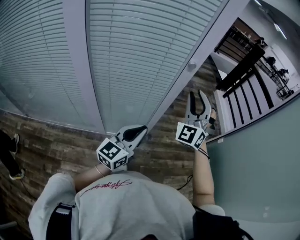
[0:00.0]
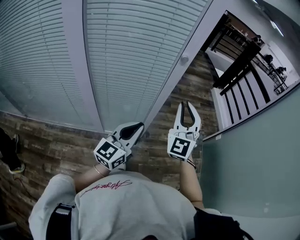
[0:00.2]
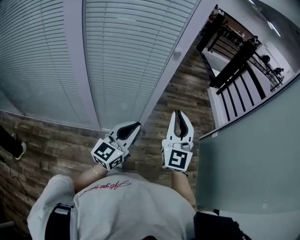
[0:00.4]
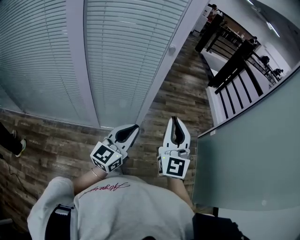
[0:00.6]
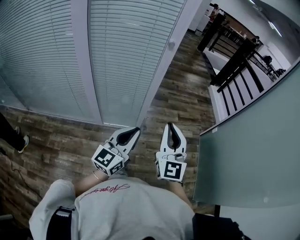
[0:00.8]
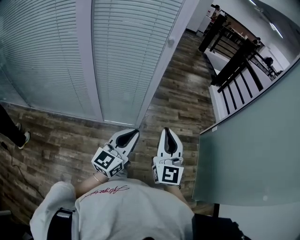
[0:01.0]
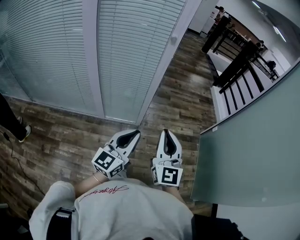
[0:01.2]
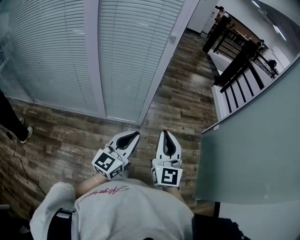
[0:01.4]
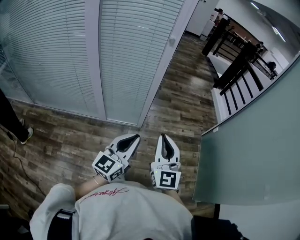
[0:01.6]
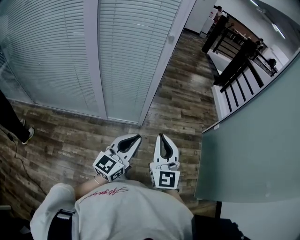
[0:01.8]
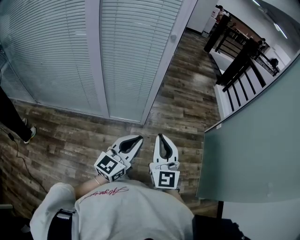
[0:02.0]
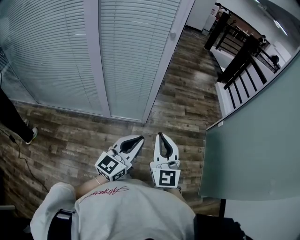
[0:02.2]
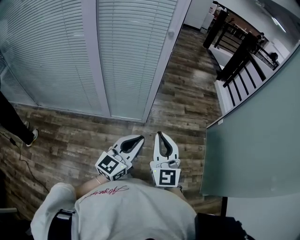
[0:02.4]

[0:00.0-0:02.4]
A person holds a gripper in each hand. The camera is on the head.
0:00.0 to 0:01.2: The right gripper shifts approximately 30 cm backward, rolls clockwise, seen from behind, by some 50 degrees, and closes; the left gripper heads backward and to the right, covering about 20 cm.
0:01.2 to 0:02.4: The right gripper moves roughly 5 cm.

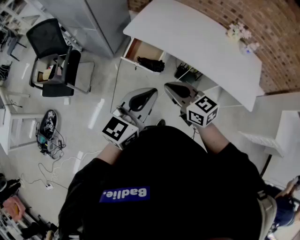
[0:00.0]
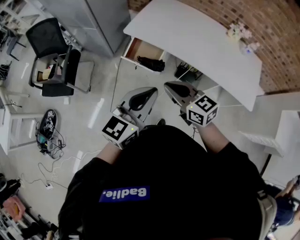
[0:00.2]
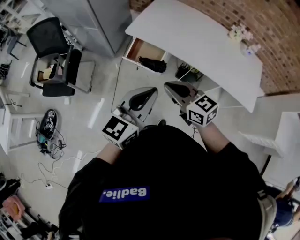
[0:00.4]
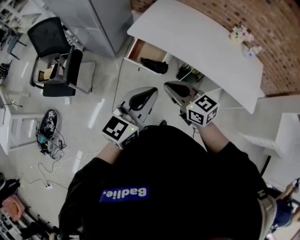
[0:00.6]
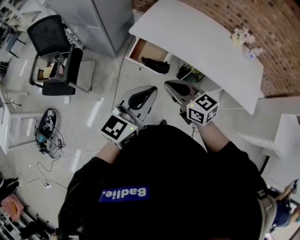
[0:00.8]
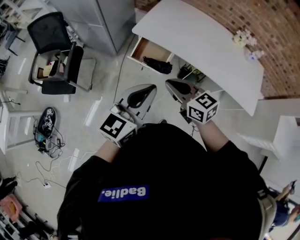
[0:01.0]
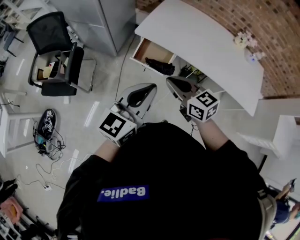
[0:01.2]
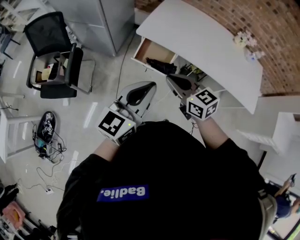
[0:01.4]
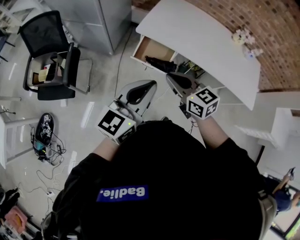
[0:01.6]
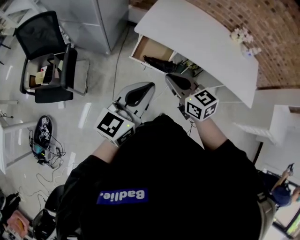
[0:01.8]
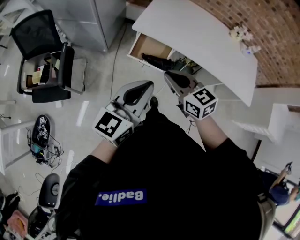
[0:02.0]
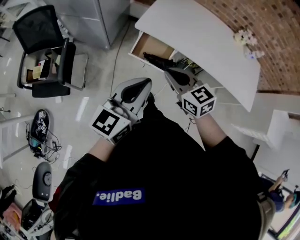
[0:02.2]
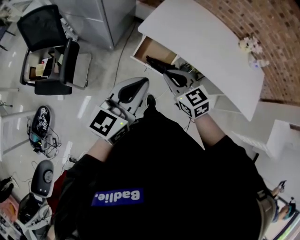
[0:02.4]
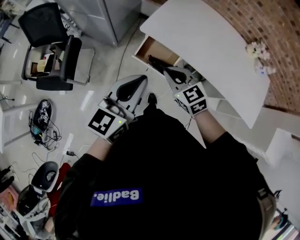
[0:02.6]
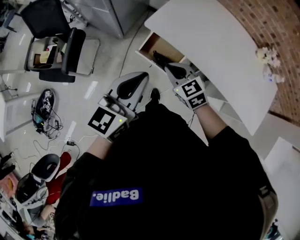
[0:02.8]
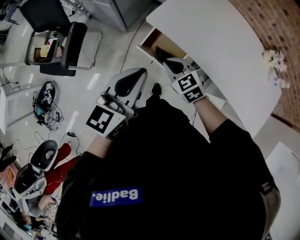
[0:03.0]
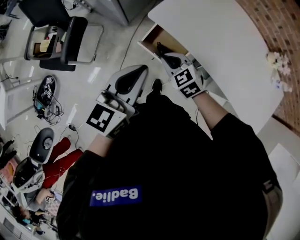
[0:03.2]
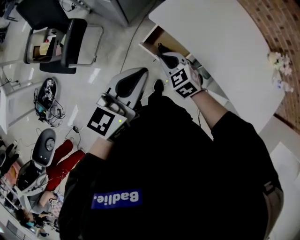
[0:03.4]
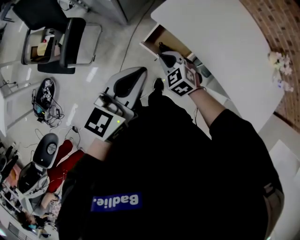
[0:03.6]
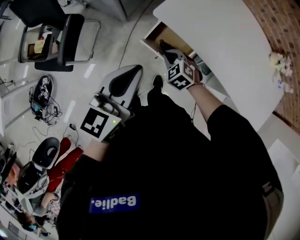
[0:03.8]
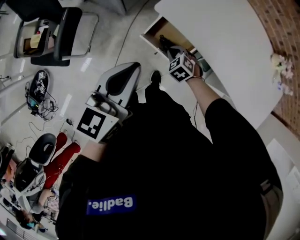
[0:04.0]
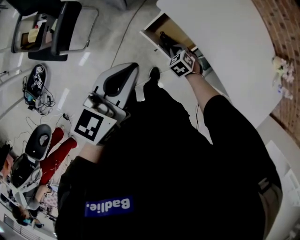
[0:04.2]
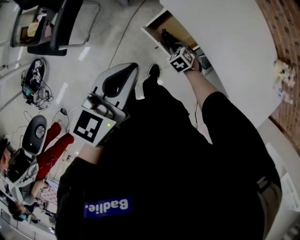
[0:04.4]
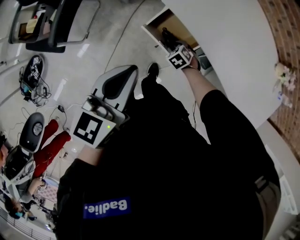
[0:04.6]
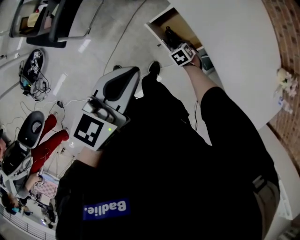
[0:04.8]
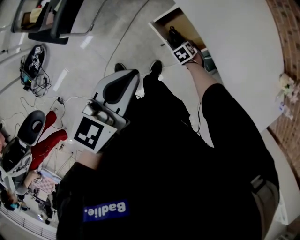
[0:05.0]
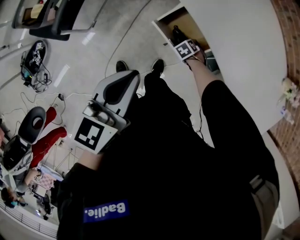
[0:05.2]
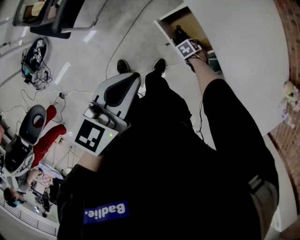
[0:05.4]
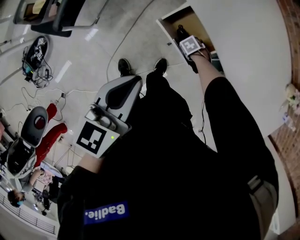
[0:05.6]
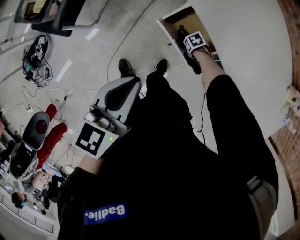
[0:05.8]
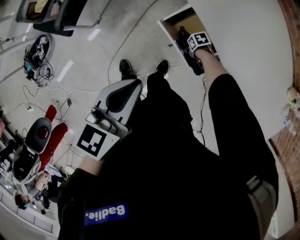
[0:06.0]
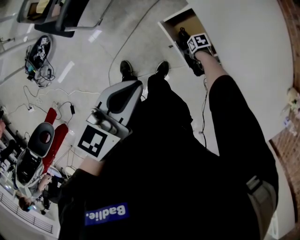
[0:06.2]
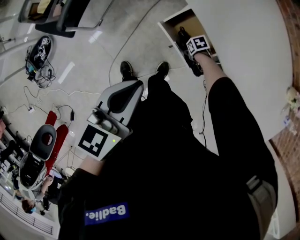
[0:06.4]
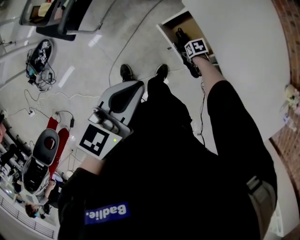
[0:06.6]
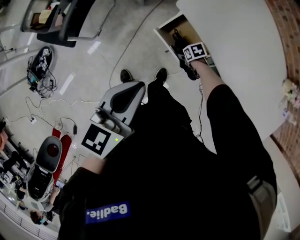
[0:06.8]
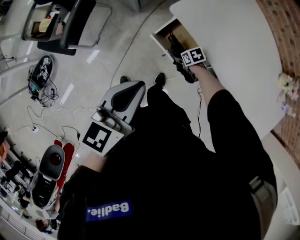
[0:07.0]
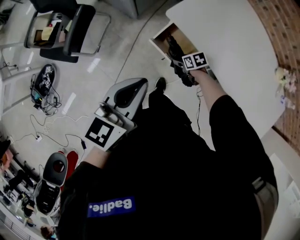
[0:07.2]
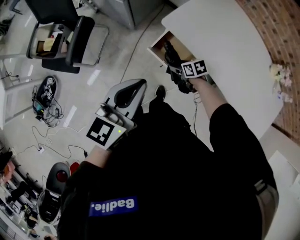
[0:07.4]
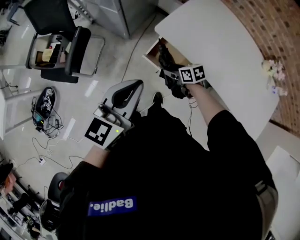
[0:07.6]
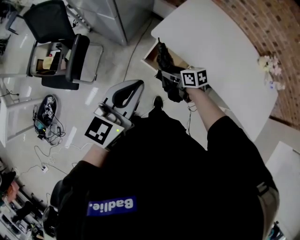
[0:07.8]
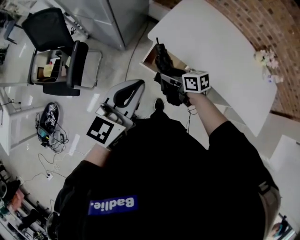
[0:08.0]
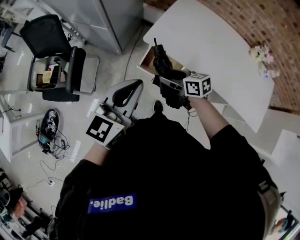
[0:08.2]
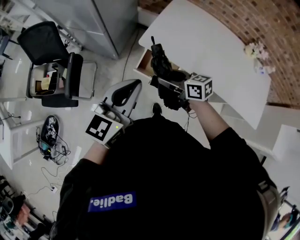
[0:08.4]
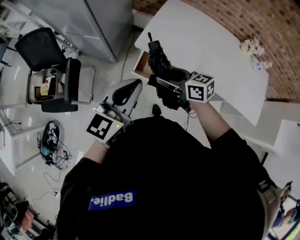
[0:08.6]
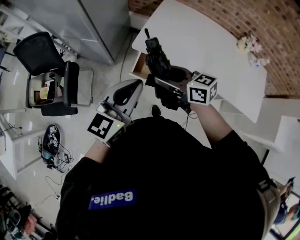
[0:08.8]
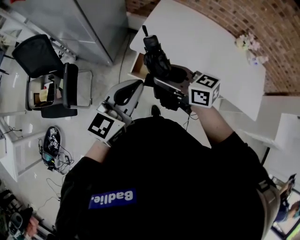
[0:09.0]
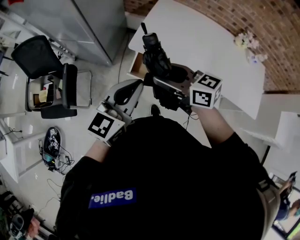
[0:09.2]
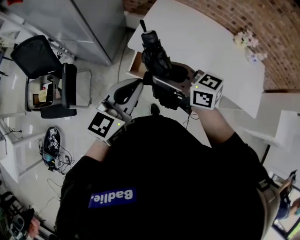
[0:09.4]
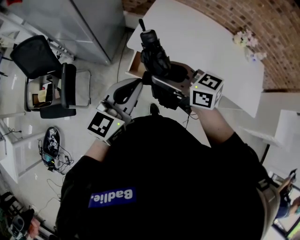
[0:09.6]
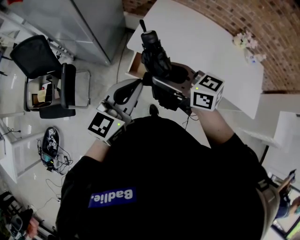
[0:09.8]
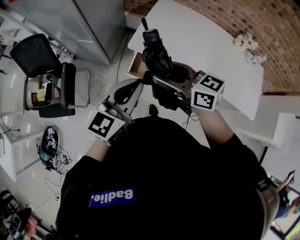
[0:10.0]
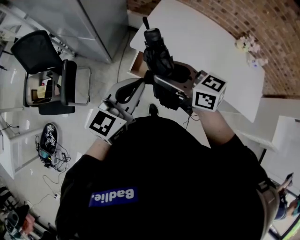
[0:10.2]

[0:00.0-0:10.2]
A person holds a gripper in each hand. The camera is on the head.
0:00.0 to 0:01.4: Both grippers travel together to the left and forward, roughly 15 cm.
0:01.4 to 0:03.0: The left gripper moves forward, roughly 20 cm; the right gripper moves forward and downward, approximately 25 cm, and changes its angle by approximately 30 degrees.
0:03.0 to 0:04.4: The left gripper moves downward and to the left, about 10 cm. Meanwhile the right gripper goes some 25 cm downward, and turns by about 30 degrees.
0:04.4 to 0:05.8: The left gripper shifts by roughly 10 cm; the right gripper is displaced downward by approximately 15 cm, rotates about 40 degrees, and opens its fingers.
0:05.8 to 0:07.2: The right gripper shifts some 15 cm upward, and turns by about 30 degrees, while the left gripper goes about 5 cm upward.
0:07.2 to 0:08.8: The right gripper travels upward by approximately 40 cm, and tilts its fingers approximately 40 degrees upward, while the left gripper travels upward by roughly 10 cm, and turns by some 30 degrees.
0:08.8 to 0:10.2: The right gripper heads upward, covering approximately 5 cm.

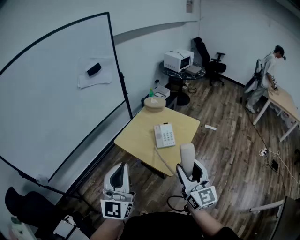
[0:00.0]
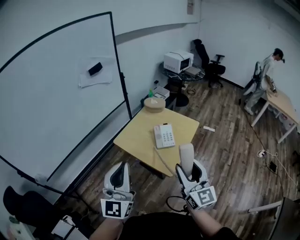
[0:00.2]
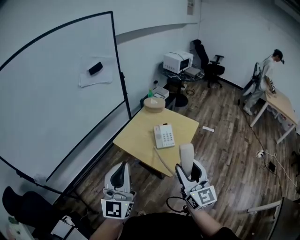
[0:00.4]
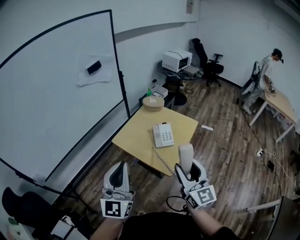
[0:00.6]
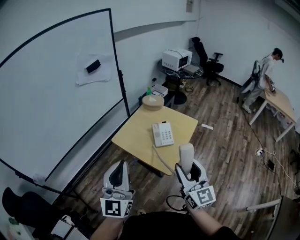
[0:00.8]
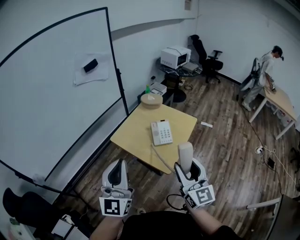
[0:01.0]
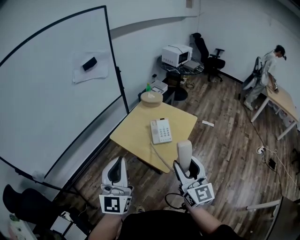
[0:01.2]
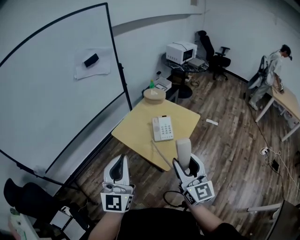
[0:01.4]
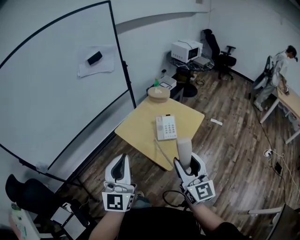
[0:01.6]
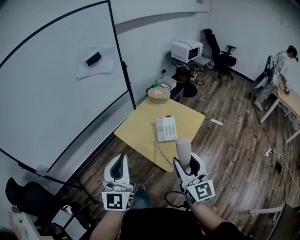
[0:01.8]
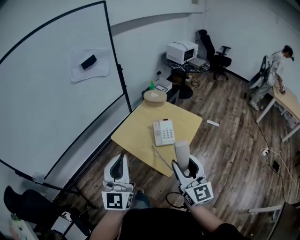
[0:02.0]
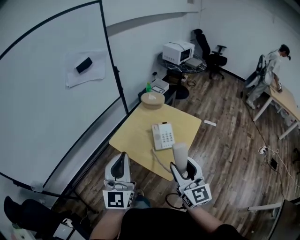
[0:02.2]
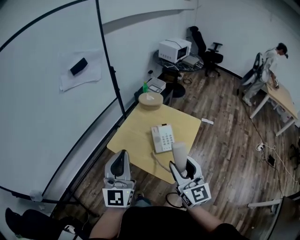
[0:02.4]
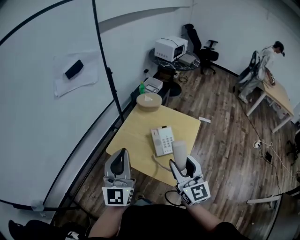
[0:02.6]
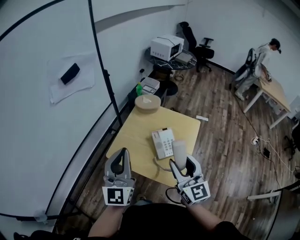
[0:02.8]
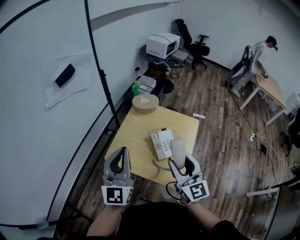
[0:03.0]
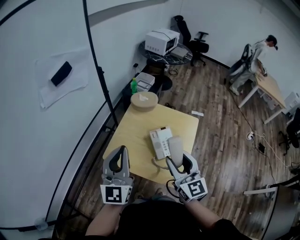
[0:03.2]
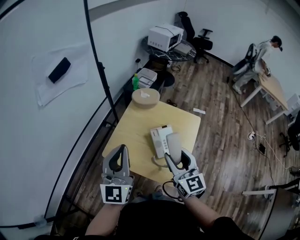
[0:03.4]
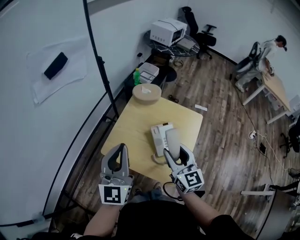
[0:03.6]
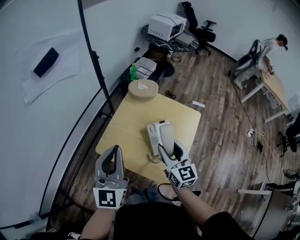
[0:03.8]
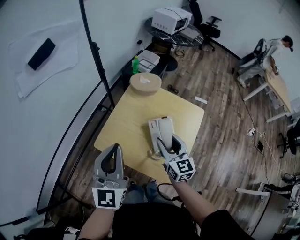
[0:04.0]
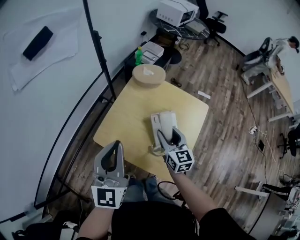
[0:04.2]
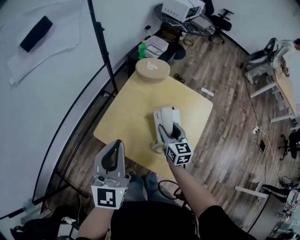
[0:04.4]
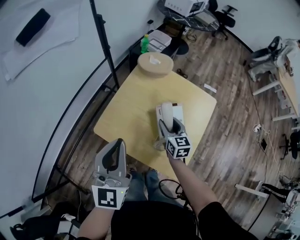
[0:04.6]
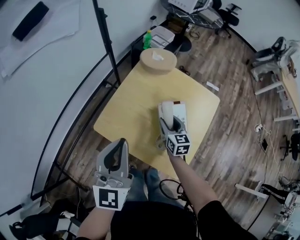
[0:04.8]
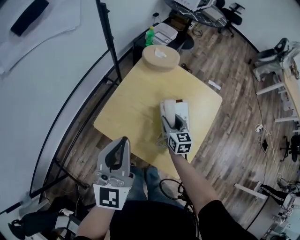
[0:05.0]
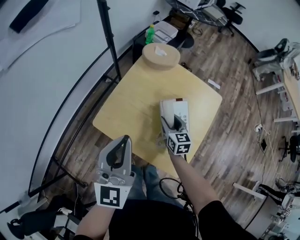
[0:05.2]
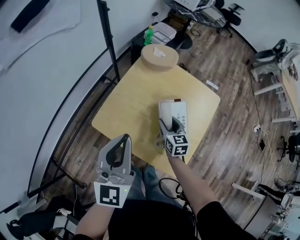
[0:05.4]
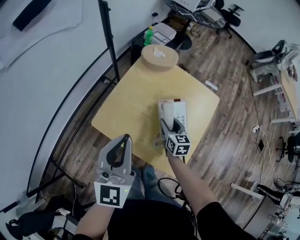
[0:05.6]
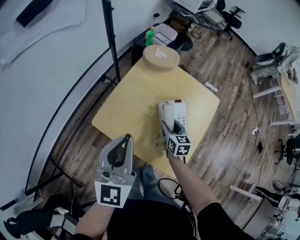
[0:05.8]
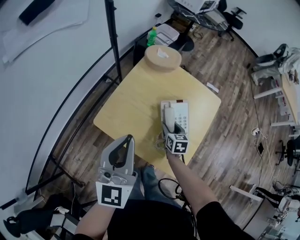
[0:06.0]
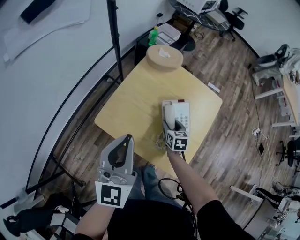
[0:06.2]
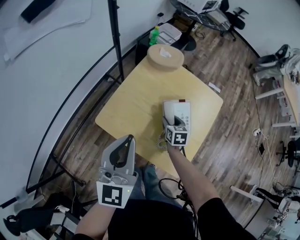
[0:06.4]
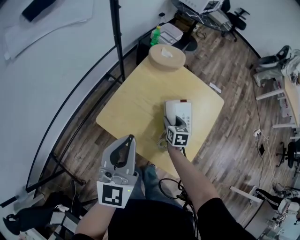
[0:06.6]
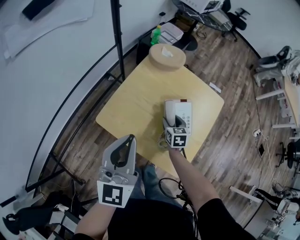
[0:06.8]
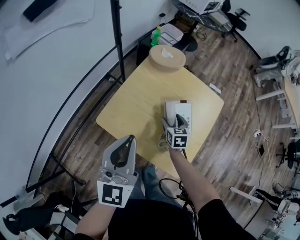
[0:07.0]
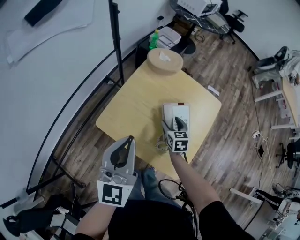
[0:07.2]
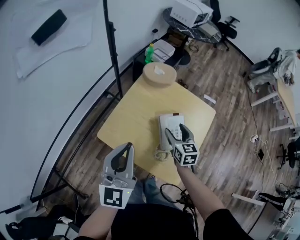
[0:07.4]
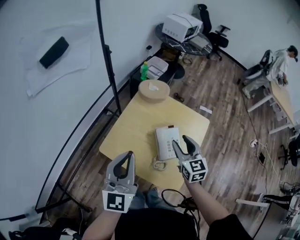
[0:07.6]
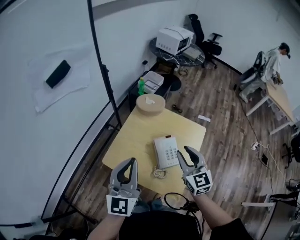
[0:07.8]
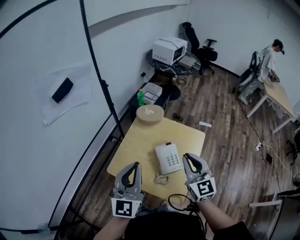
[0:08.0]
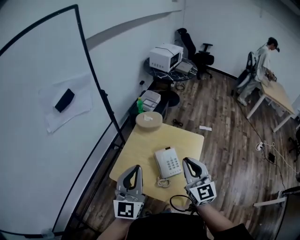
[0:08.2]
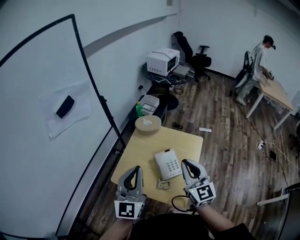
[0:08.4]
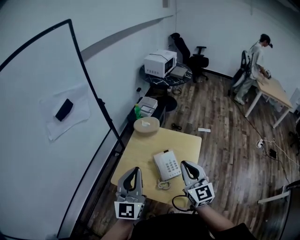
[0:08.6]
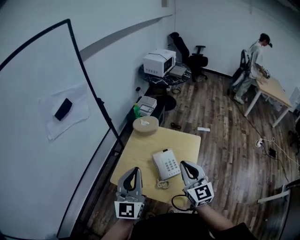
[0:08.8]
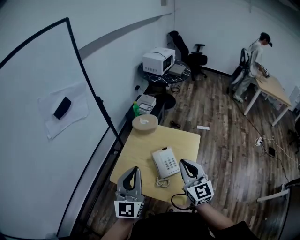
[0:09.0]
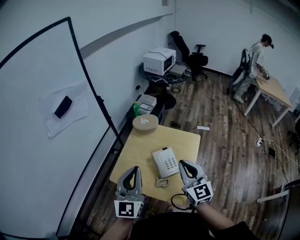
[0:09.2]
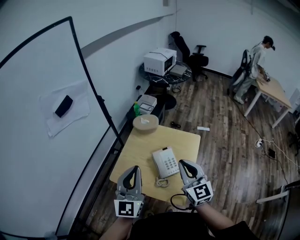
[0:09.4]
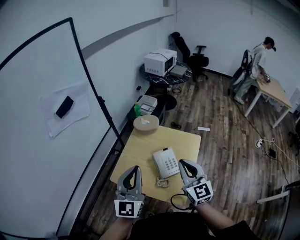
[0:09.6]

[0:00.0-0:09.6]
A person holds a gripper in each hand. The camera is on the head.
0:00.0 to 0:01.6: There are only small adjustments of the grippers.
0:01.6 to 0:03.2: The right gripper goes roughly 30 cm forward and to the left, while the left gripper moves forward, some 30 cm.
0:03.2 to 0:04.8: The right gripper moves downward and forward, roughly 35 cm, and rotates about 30 degrees, while the left gripper is displaced downward by roughly 10 cm.
0:04.8 to 0:06.4: The right gripper is displaced downward by about 5 cm.
0:06.4 to 0:08.0: The right gripper shifts about 35 cm upward, tips its fingers upward by roughly 40 degrees, and closes up. Meanwhile the left gripper goes about 10 cm upward.
0:08.0 to 0:09.6: The right gripper shifts by about 5 cm.

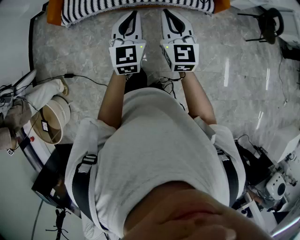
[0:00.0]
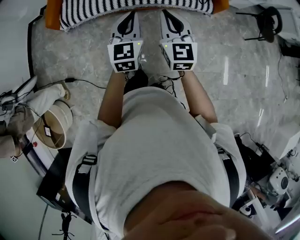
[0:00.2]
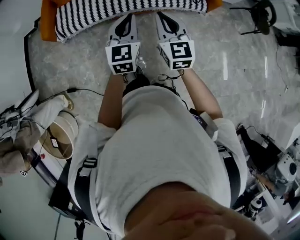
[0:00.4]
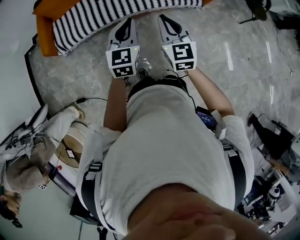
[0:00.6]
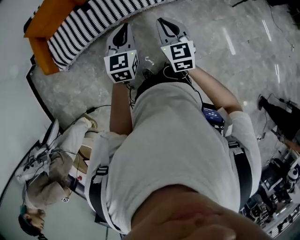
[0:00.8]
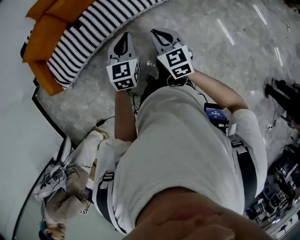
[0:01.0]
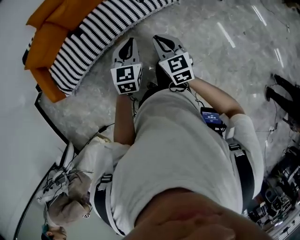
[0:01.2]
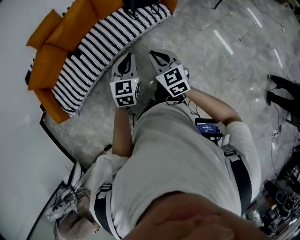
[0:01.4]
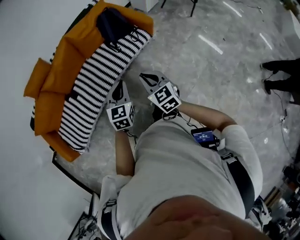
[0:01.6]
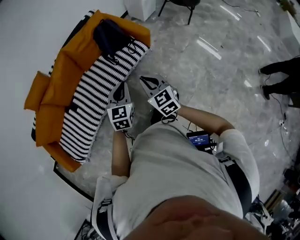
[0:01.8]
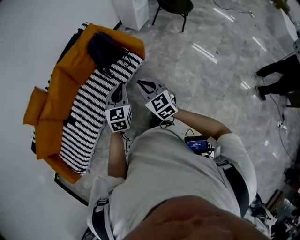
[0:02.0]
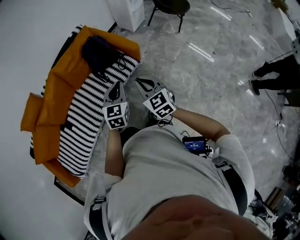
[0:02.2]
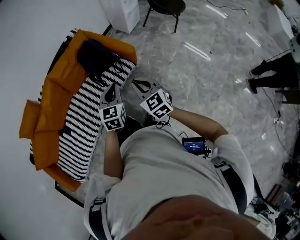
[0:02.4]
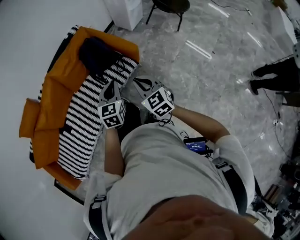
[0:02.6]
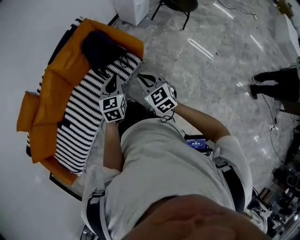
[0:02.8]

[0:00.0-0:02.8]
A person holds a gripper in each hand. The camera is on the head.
0:00.0 to 0:01.4: The left gripper moves about 20 cm, and changes its angle by approximately 40 degrees. Meanwhile the right gripper moves some 20 cm, and turns by some 30 degrees.
0:01.4 to 0:02.8: The grippers both shift forward and to the right by approximately 40 cm.
